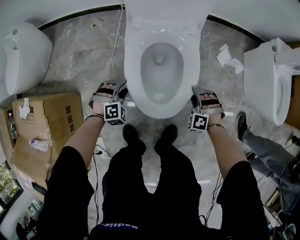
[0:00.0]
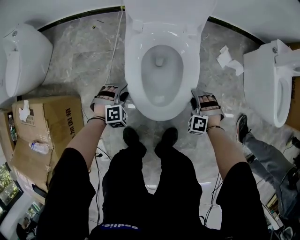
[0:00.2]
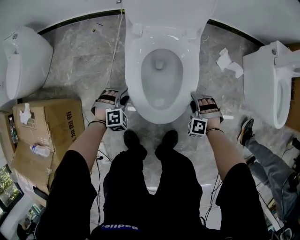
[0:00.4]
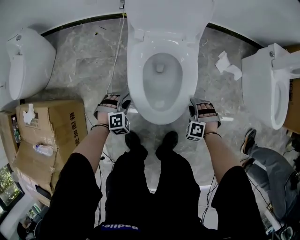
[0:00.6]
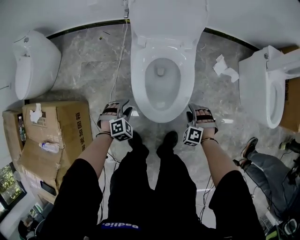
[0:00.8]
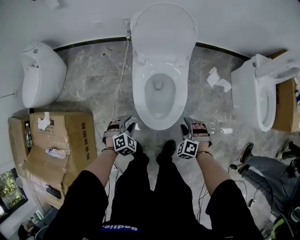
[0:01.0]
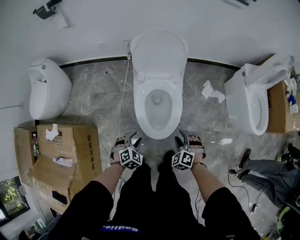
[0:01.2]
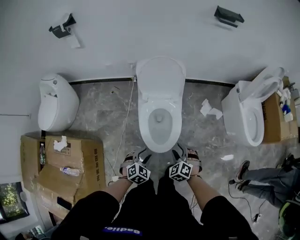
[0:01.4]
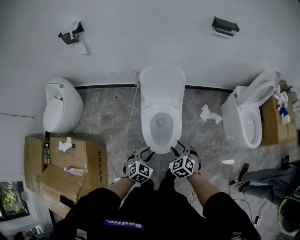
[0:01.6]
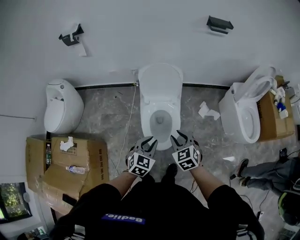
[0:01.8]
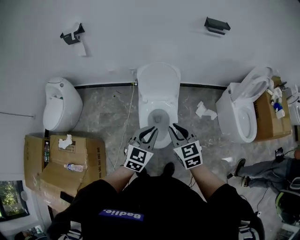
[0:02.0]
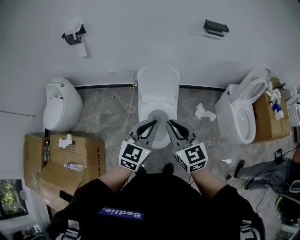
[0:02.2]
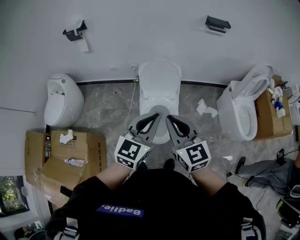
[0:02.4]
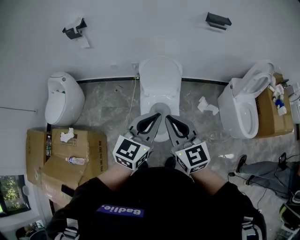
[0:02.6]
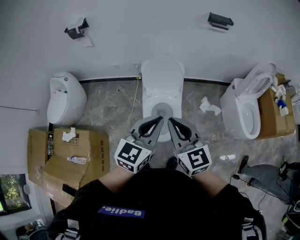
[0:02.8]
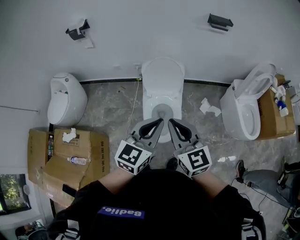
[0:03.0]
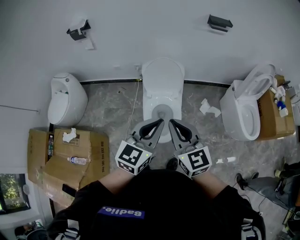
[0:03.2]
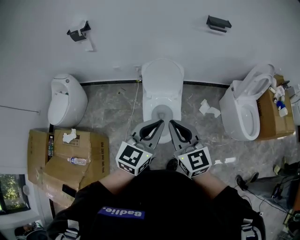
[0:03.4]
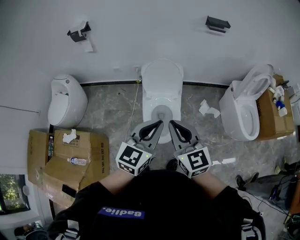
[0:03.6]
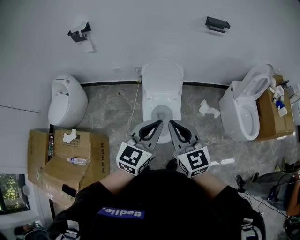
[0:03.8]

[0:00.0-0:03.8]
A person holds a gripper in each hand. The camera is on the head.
0:00.0 to 0:01.2: The left gripper heads upward and backward, covering roughly 20 cm, and rotates approximately 30 degrees, while the right gripper is displaced upward by approximately 25 cm, and swivels roughly 30 degrees.
0:01.2 to 0:02.6: The two grippers go roughly 50 cm upward. The left gripper points its fingers some 50 degrees further upward, and closes, while the right gripper points its fingers about 50 degrees further upward, and closes its fingers.
0:02.6 to 0:03.8: The grippers stay close to where they were, moving slightly.

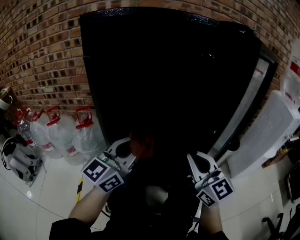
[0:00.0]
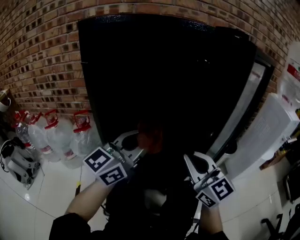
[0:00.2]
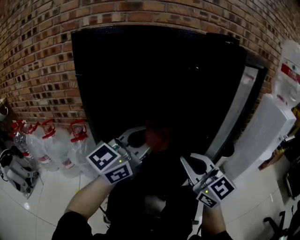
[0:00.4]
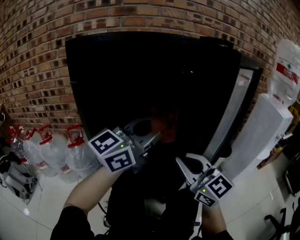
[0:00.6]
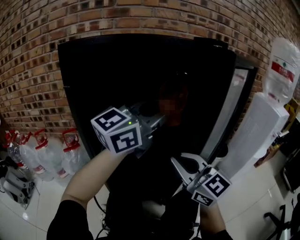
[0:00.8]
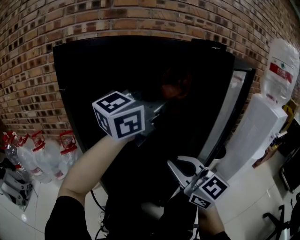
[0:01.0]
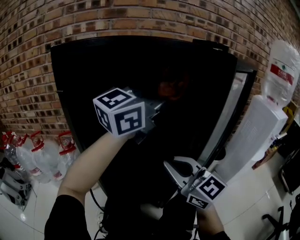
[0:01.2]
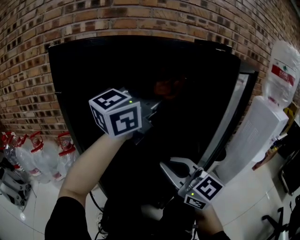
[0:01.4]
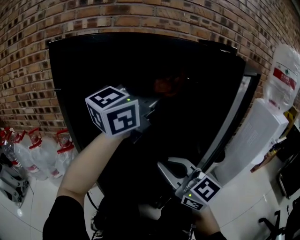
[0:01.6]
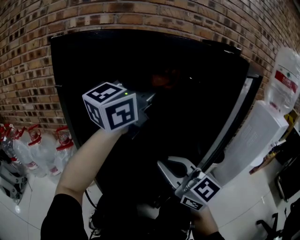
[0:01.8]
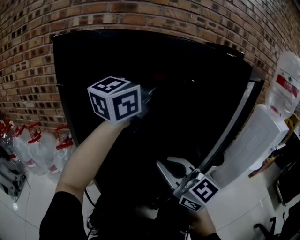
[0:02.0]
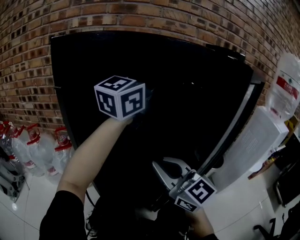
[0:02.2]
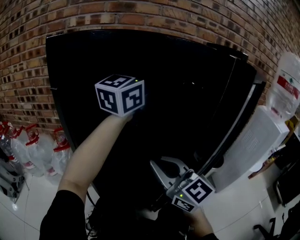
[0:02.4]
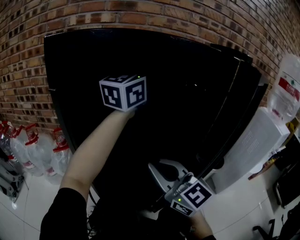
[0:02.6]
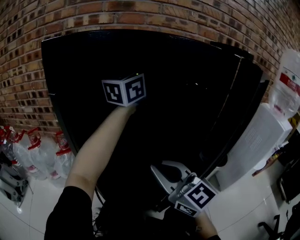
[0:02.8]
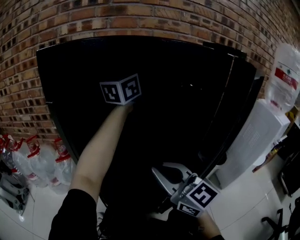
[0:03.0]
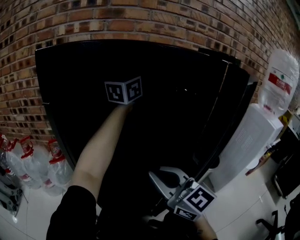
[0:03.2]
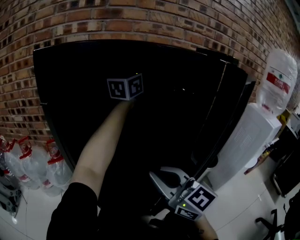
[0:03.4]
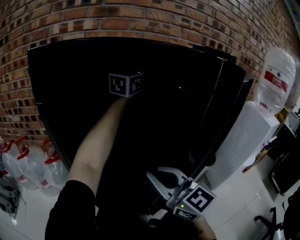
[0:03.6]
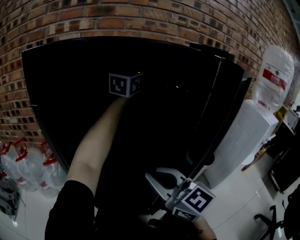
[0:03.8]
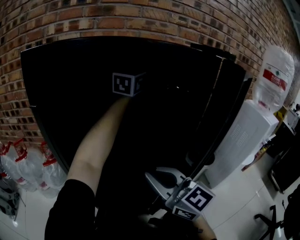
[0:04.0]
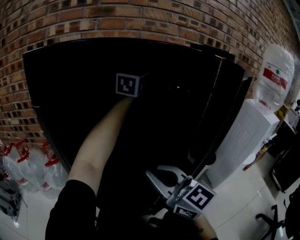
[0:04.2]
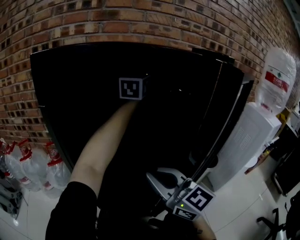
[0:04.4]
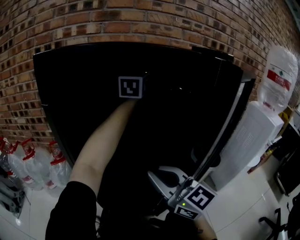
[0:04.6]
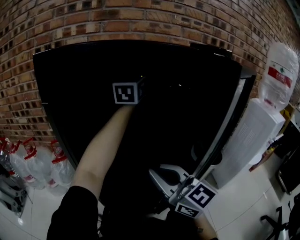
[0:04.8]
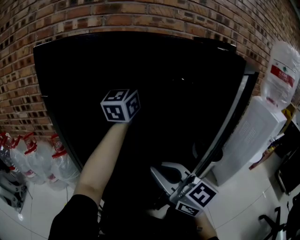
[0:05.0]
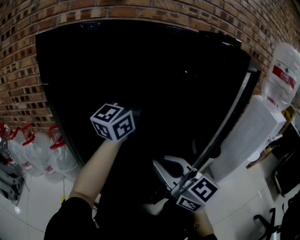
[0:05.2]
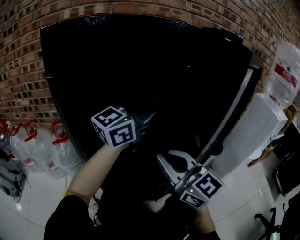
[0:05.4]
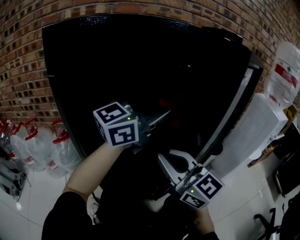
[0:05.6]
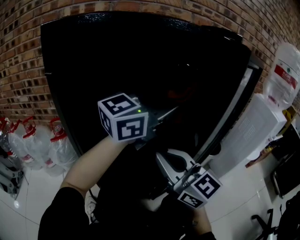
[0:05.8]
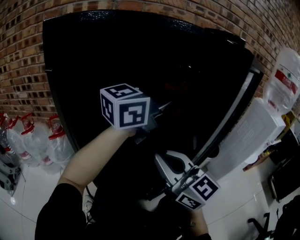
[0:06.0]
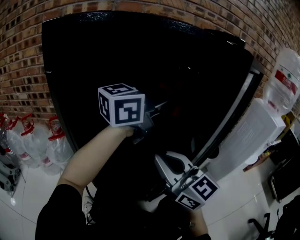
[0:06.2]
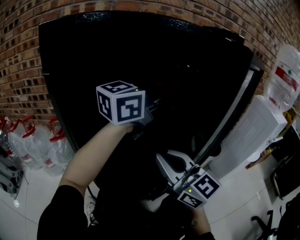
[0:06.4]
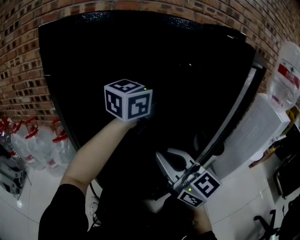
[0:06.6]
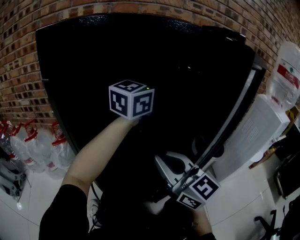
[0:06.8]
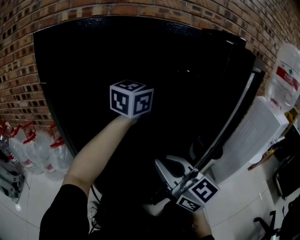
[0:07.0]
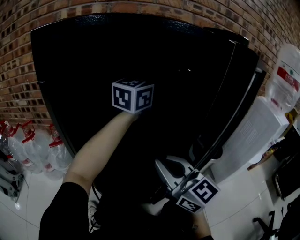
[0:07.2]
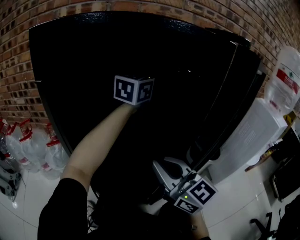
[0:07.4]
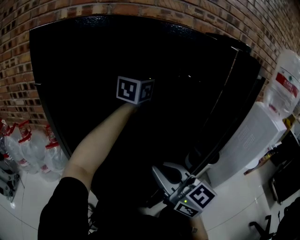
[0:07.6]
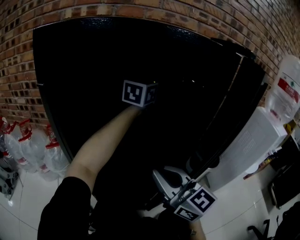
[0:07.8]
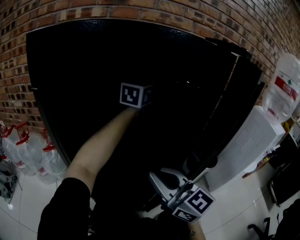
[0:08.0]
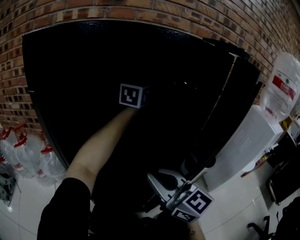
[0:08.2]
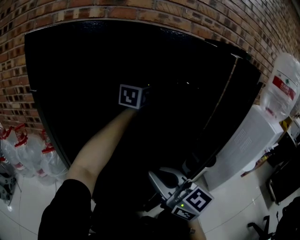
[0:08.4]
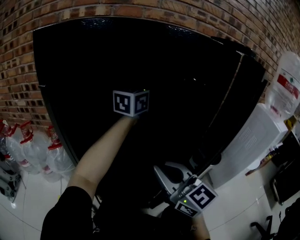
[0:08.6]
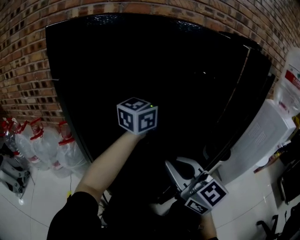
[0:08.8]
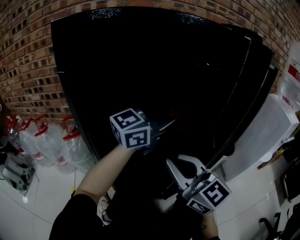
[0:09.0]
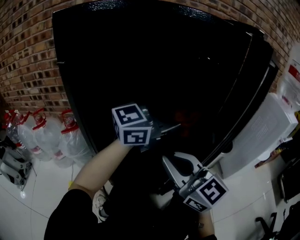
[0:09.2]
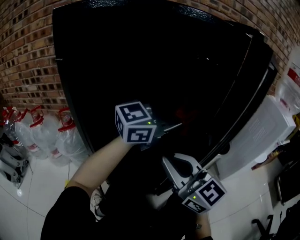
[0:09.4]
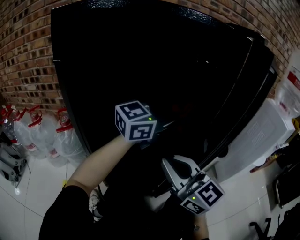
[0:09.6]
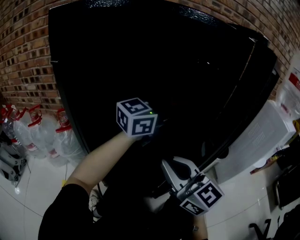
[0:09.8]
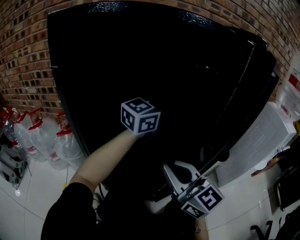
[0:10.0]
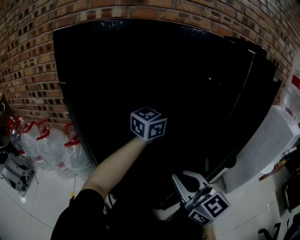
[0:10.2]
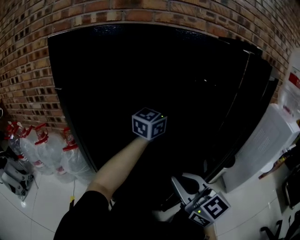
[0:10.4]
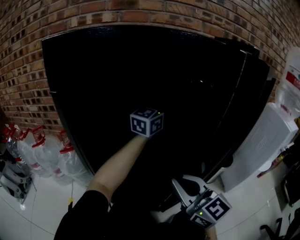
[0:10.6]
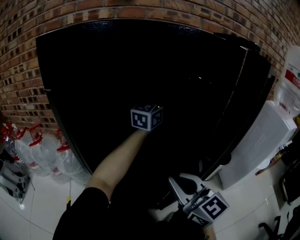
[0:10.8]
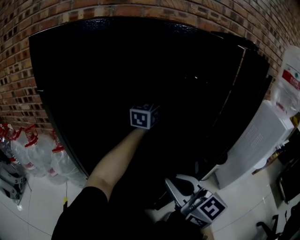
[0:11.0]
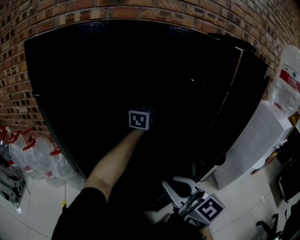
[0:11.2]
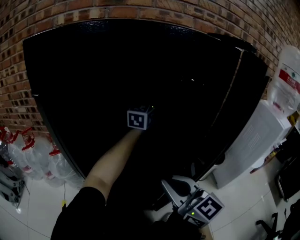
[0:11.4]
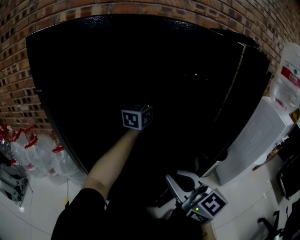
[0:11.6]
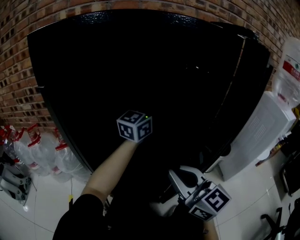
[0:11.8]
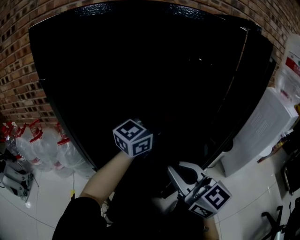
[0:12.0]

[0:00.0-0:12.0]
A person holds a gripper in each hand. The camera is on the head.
0:00.0 to 0:01.6: The left gripper is displaced upward, forward and to the right by about 25 cm, and turns by some 20 degrees; the right gripper ends up approximately 5 cm from where it was.
0:01.6 to 0:03.0: The left gripper is displaced forward by roughly 20 cm.
0:03.0 to 0:04.4: The left gripper goes about 5 cm forward.
0:04.4 to 0:06.0: The left gripper heads backward, covering roughly 20 cm, and turns by roughly 40 degrees.
0:06.0 to 0:07.6: The left gripper goes about 20 cm forward, and changes its angle by some 30 degrees.
0:07.6 to 0:09.0: The left gripper travels backward by some 20 cm, and turns by some 30 degrees.
0:09.0 to 0:10.4: The left gripper is displaced forward by approximately 15 cm, and rotates roughly 20 degrees.
0:10.4 to 0:12.0: The left gripper is displaced backward by approximately 10 cm.

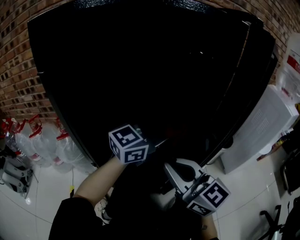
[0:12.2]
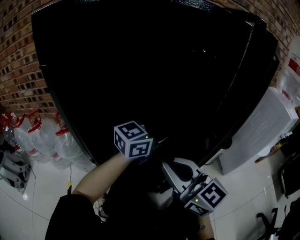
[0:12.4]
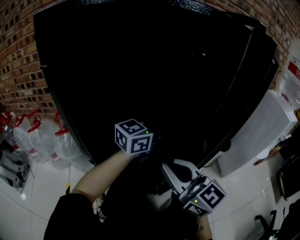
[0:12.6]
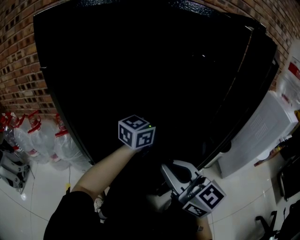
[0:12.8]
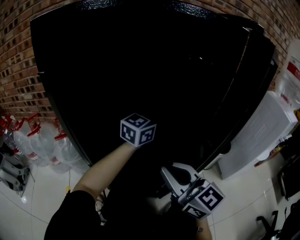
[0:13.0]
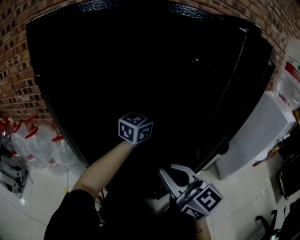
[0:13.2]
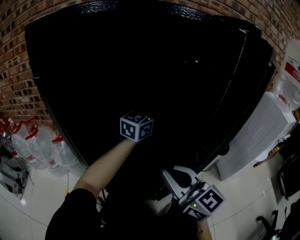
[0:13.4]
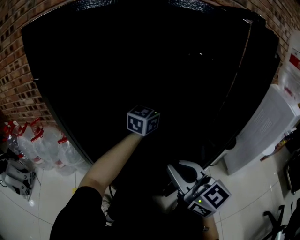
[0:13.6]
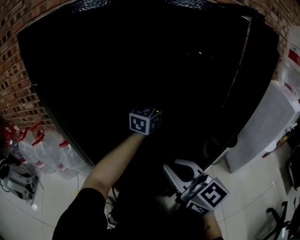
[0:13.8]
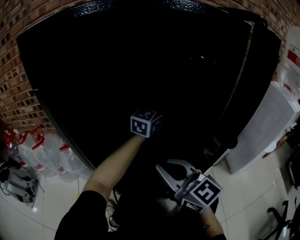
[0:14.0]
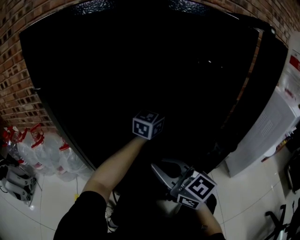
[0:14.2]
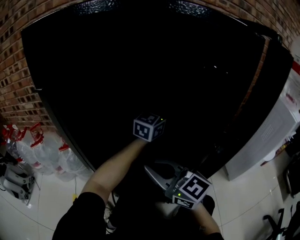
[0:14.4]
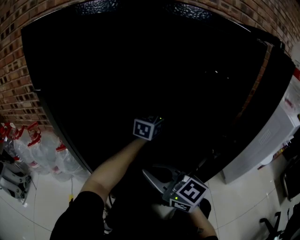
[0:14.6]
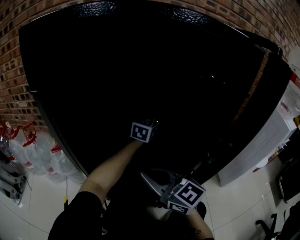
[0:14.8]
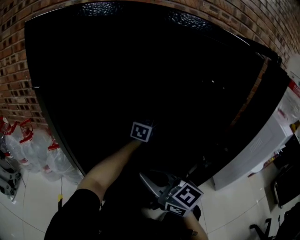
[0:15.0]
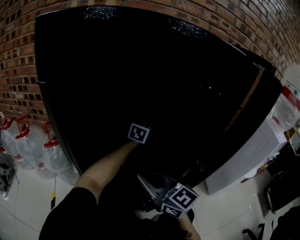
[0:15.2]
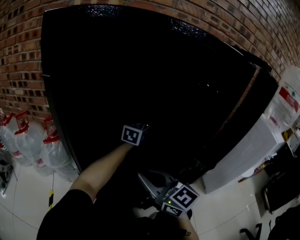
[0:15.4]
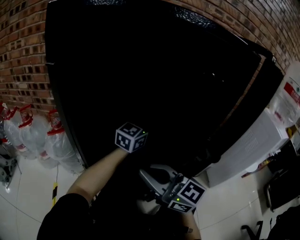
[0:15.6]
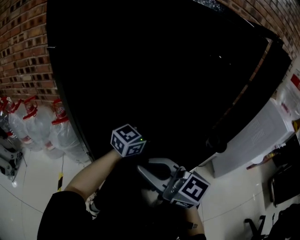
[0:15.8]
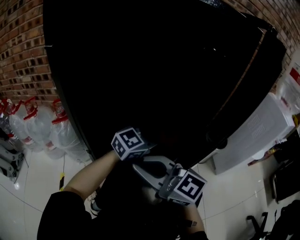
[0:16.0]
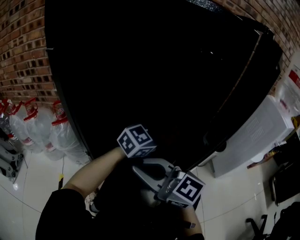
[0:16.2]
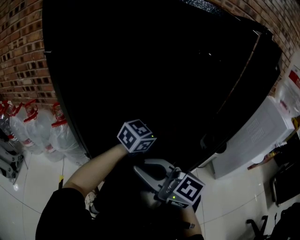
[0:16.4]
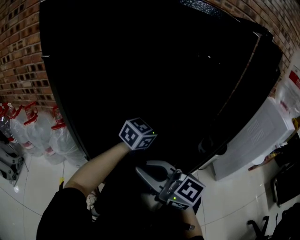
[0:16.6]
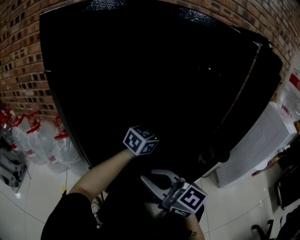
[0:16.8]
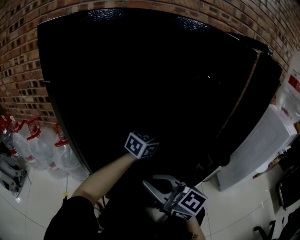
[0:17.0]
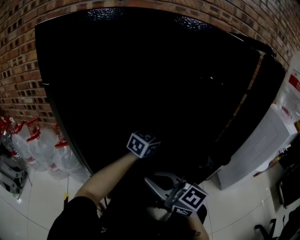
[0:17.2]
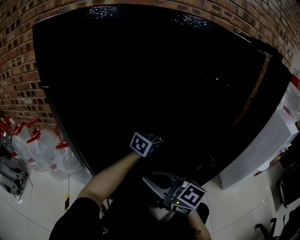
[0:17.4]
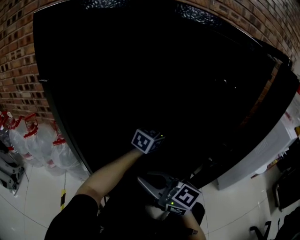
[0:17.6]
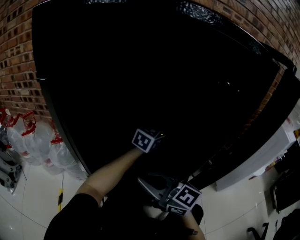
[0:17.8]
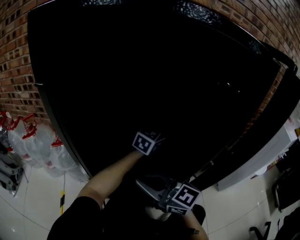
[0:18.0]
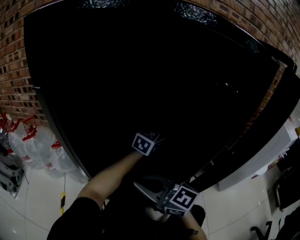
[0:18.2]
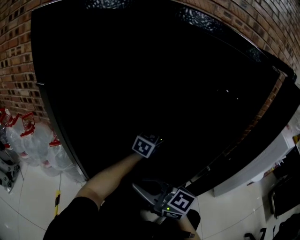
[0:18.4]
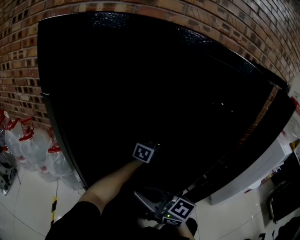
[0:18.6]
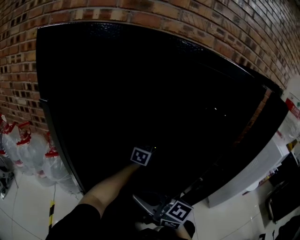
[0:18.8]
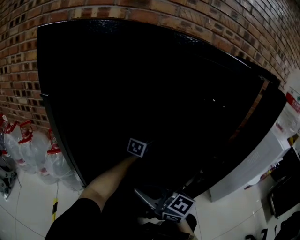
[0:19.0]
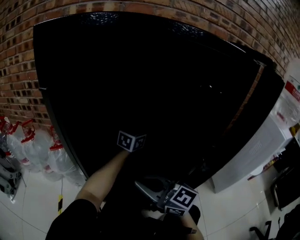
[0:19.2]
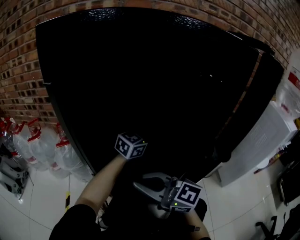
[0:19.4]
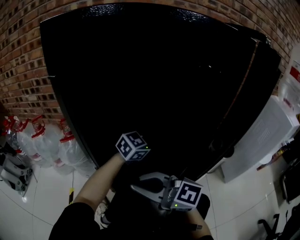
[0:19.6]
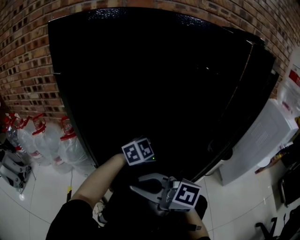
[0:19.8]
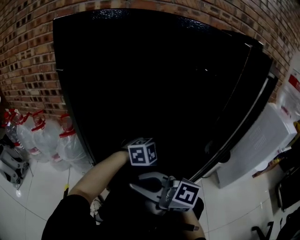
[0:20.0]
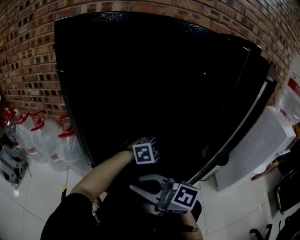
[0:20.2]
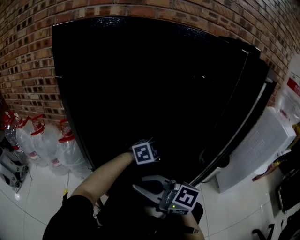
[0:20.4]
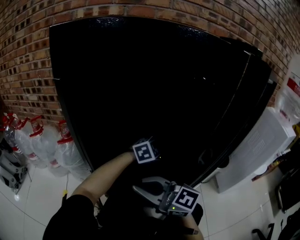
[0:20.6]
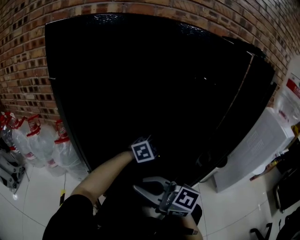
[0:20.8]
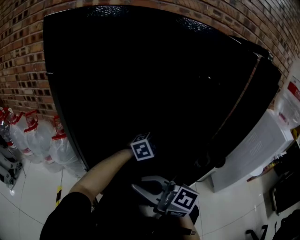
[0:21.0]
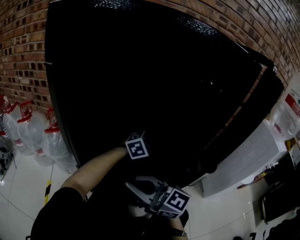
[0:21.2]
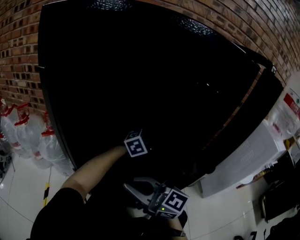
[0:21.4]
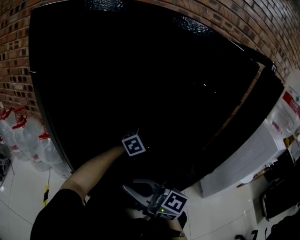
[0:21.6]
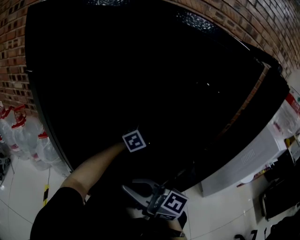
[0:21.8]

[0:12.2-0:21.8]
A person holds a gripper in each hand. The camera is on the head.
0:12.2 to 0:13.8: The left gripper is displaced forward by approximately 20 cm, and rotates some 30 degrees.
0:13.8 to 0:15.4: The left gripper ends up about 5 cm from where it was; the right gripper shifts by about 5 cm.
0:15.4 to 0:17.0: The left gripper rotates some 20 degrees.
0:17.0 to 0:18.6: The left gripper travels forward by some 10 cm.
0:18.6 to 0:20.2: The left gripper shifts by approximately 20 cm, and tips its fingers downward by approximately 30 degrees, while the right gripper shifts by roughly 10 cm.
0:20.2 to 0:21.8: The left gripper shifts by about 15 cm. The right gripper changes place by about 5 cm.
